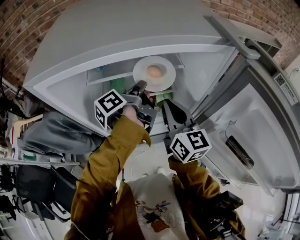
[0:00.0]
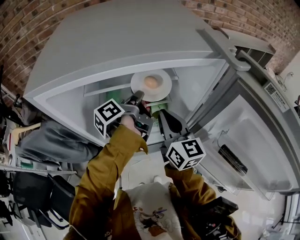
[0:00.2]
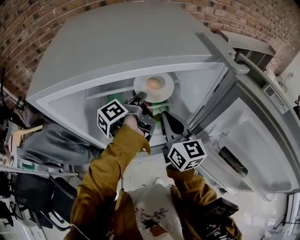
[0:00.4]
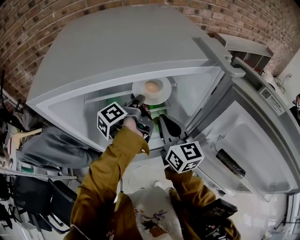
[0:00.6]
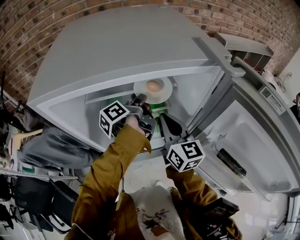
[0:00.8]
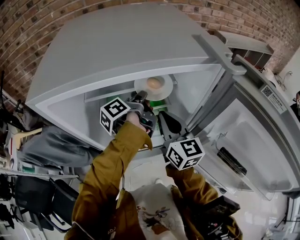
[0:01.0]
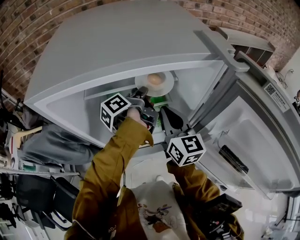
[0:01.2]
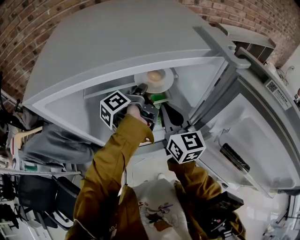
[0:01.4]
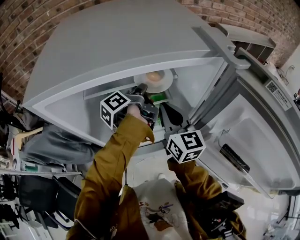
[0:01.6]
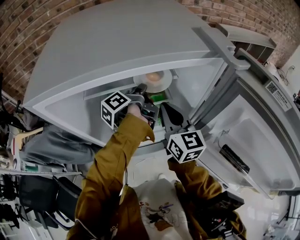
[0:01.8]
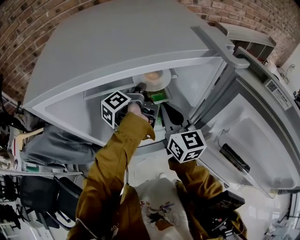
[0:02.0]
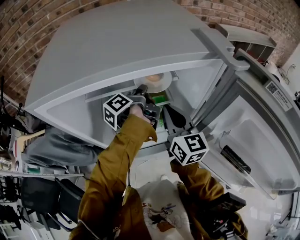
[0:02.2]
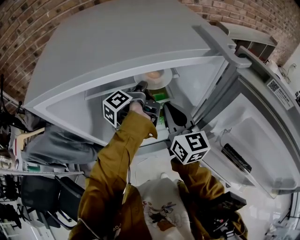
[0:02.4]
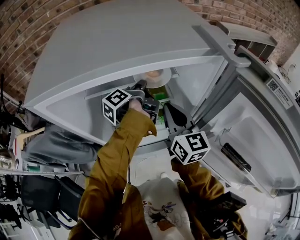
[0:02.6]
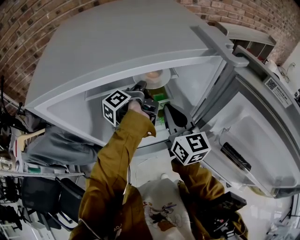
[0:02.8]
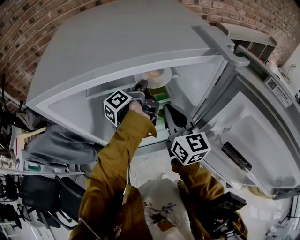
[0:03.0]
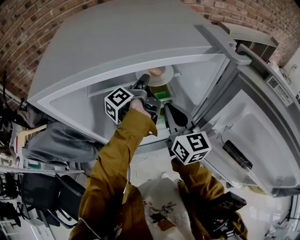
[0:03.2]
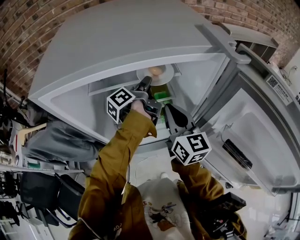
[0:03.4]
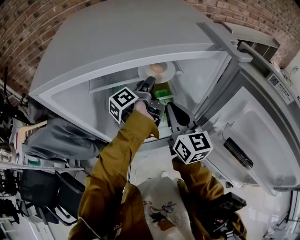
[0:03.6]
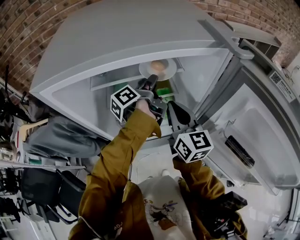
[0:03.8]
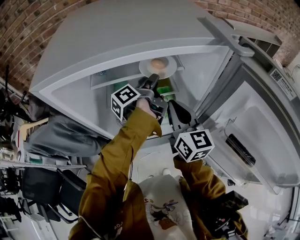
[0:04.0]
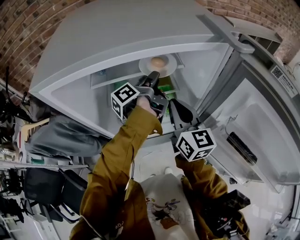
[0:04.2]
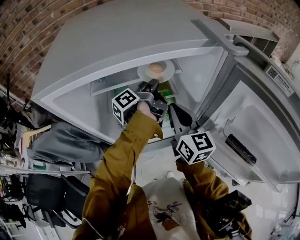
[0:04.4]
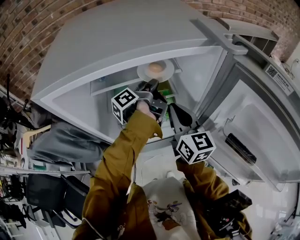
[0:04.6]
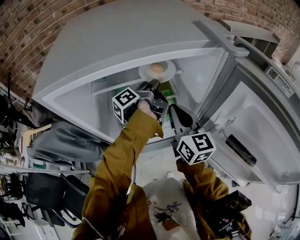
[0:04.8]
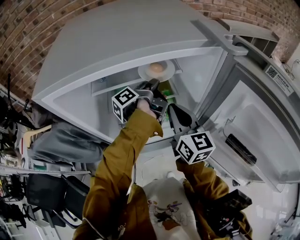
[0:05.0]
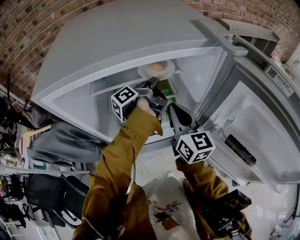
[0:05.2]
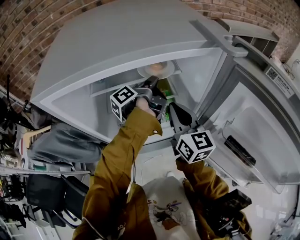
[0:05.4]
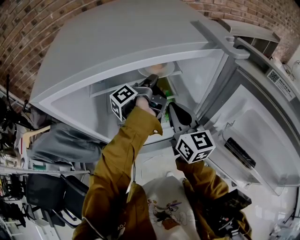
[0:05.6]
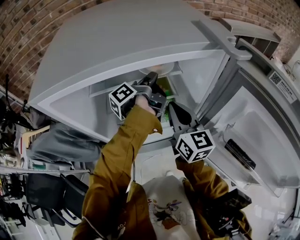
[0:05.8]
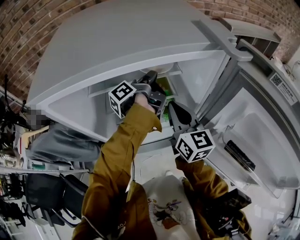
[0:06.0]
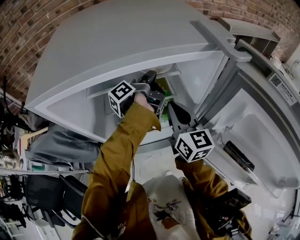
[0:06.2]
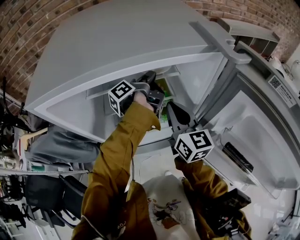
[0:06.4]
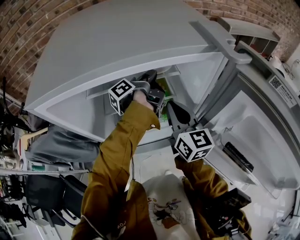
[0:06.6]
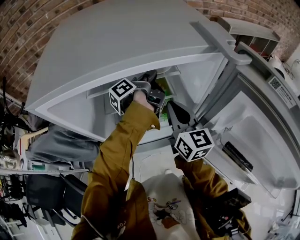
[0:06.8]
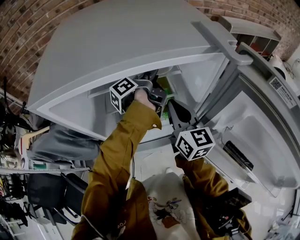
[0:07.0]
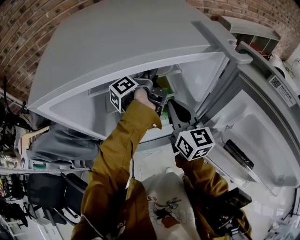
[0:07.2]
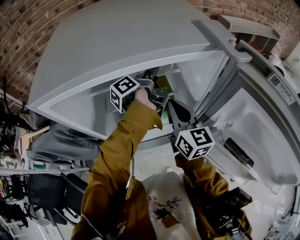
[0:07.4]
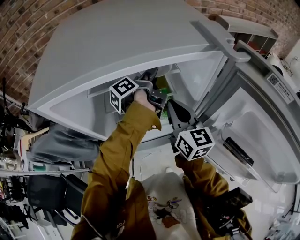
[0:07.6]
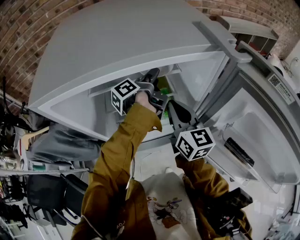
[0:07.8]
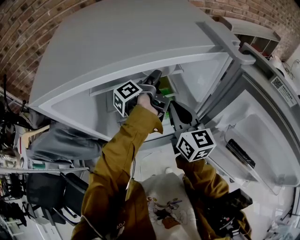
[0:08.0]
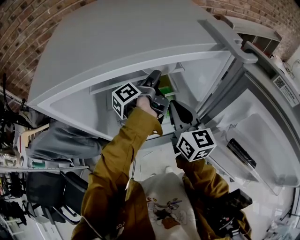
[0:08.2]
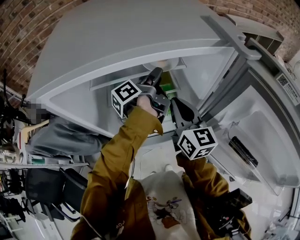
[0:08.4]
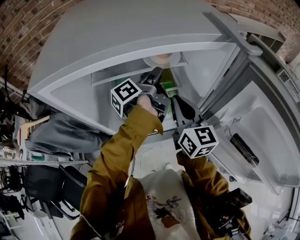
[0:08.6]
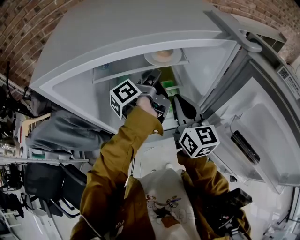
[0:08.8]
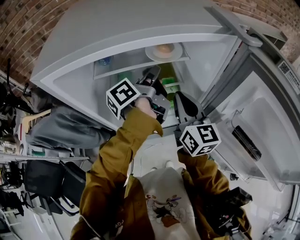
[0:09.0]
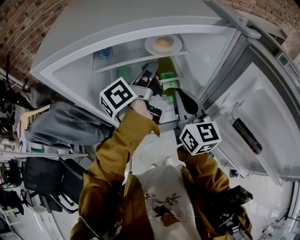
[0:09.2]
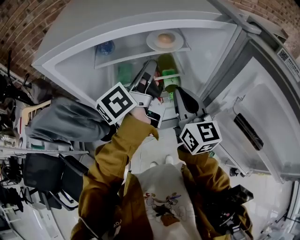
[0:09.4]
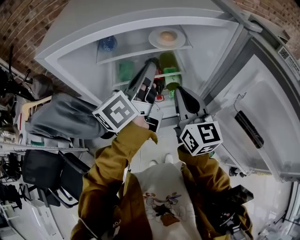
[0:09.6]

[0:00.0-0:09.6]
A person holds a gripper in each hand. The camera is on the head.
0:08.0 to 0:09.6: The right gripper shifts by some 5 cm.

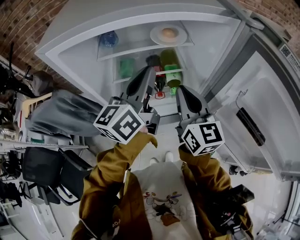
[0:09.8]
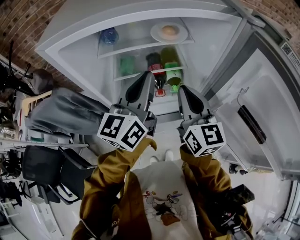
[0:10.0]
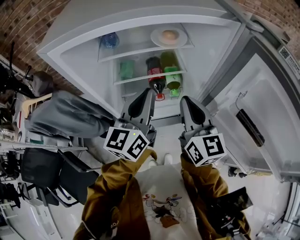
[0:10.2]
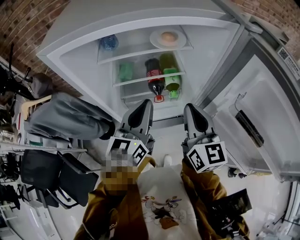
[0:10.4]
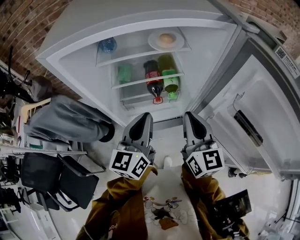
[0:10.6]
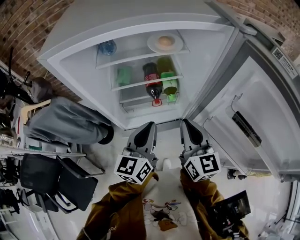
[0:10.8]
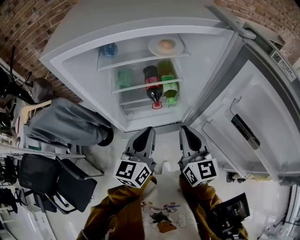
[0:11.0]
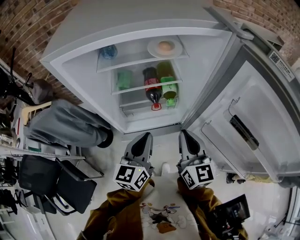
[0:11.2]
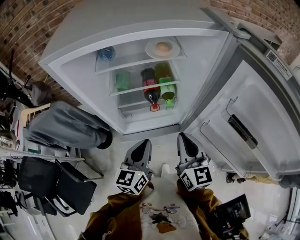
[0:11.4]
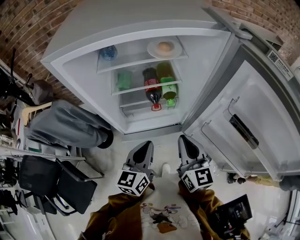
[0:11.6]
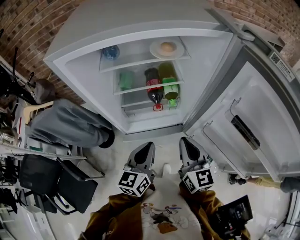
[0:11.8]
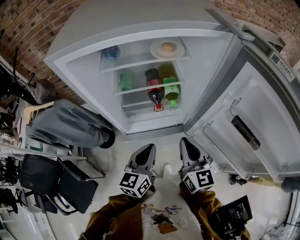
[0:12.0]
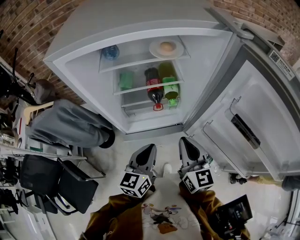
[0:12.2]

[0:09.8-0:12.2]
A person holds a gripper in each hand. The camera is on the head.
0:09.8 to 0:11.0: The right gripper moves about 10 cm.

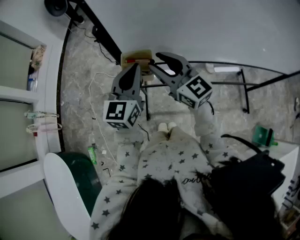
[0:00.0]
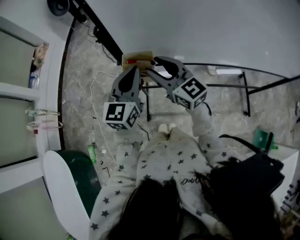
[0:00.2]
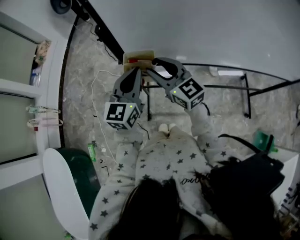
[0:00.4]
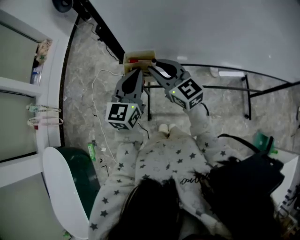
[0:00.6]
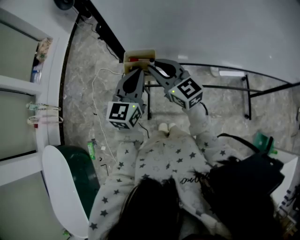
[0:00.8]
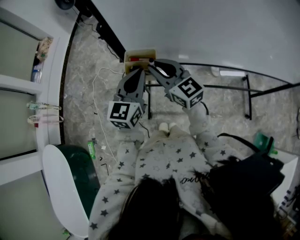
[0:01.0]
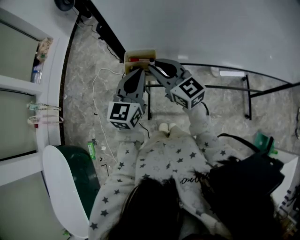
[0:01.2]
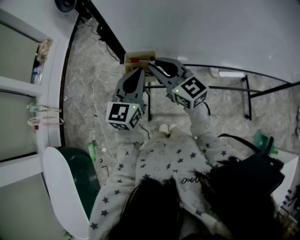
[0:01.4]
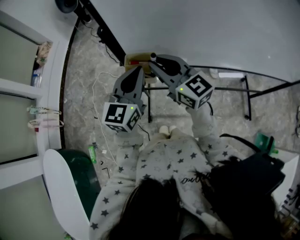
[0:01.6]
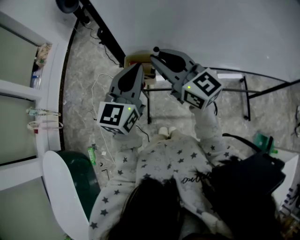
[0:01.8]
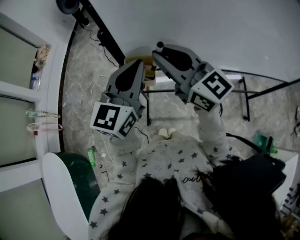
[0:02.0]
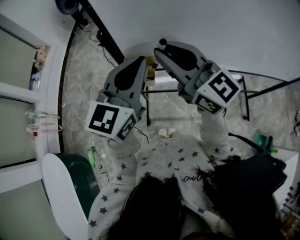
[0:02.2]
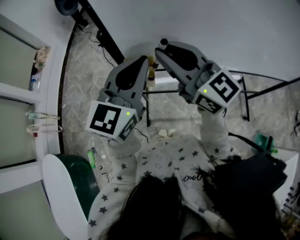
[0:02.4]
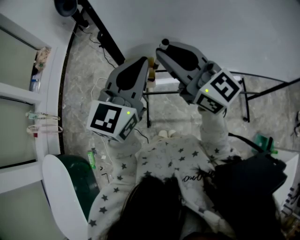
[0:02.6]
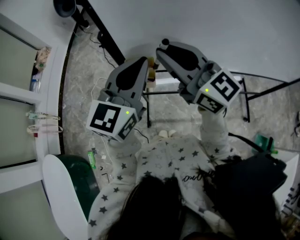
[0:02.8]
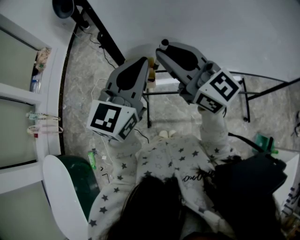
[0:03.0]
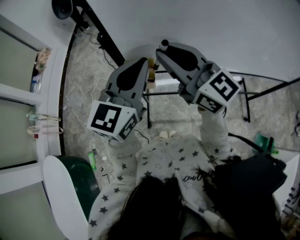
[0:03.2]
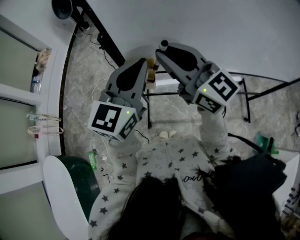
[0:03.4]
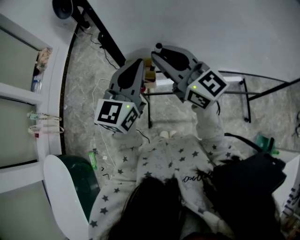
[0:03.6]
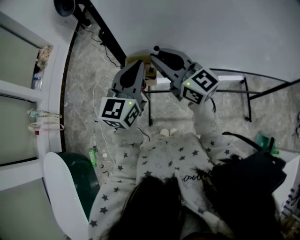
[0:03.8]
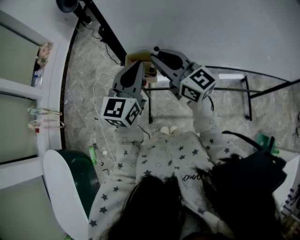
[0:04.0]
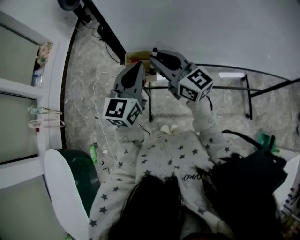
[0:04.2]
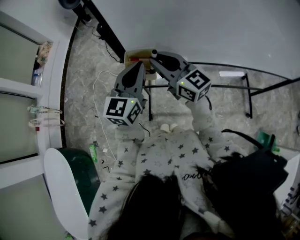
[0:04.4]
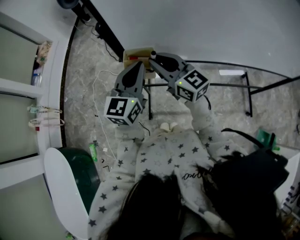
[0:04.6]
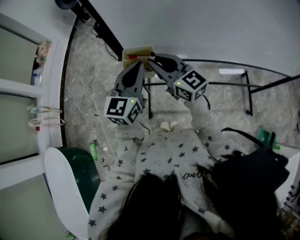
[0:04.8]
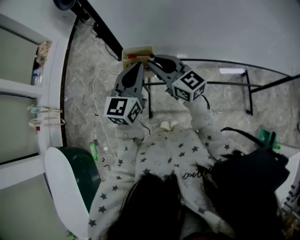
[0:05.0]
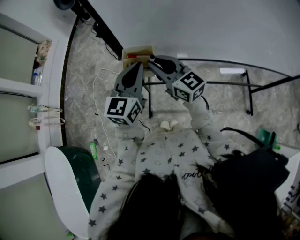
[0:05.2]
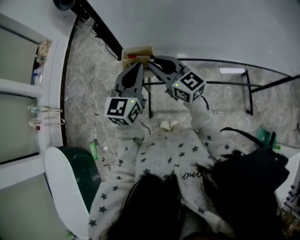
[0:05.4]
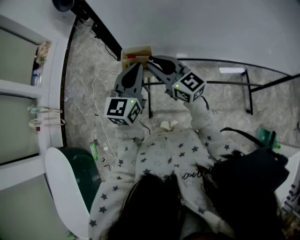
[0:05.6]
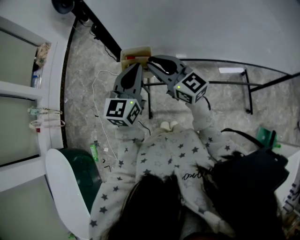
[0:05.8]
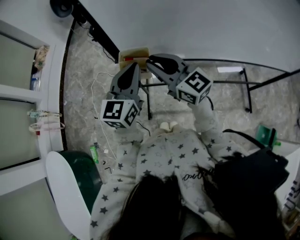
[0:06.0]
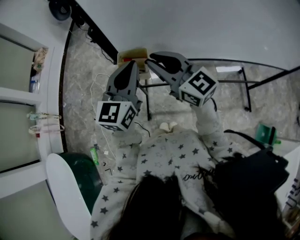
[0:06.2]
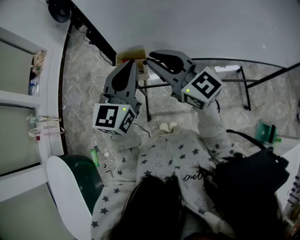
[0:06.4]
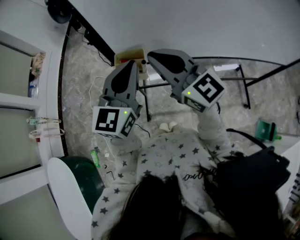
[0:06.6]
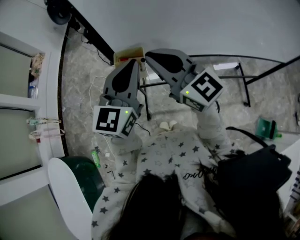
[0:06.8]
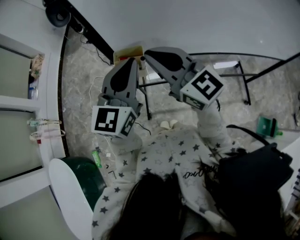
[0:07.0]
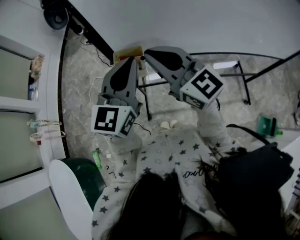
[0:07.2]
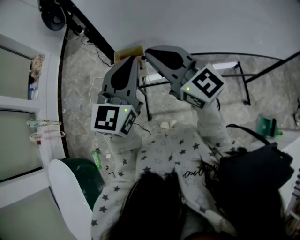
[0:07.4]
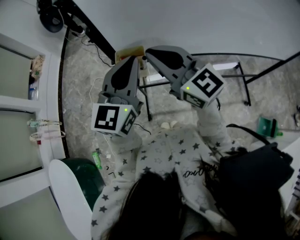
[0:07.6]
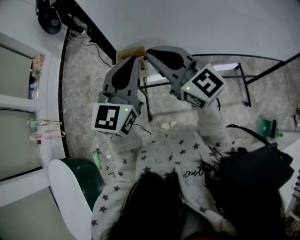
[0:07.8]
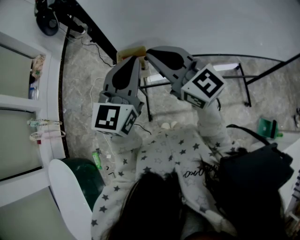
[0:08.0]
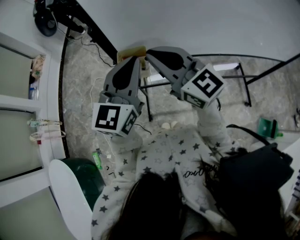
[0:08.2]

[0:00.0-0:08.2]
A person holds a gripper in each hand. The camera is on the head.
0:00.0 to 0:01.6: The grippers stay close to where they were, moving slightly.
0:01.6 to 0:03.2: The two grippers go about 10 cm upward.
0:03.2 to 0:05.0: The grippers both shift downward by some 15 cm.
0:05.0 to 0:06.6: The grippers both shift upward by about 10 cm.
0:06.6 to 0:08.2: The grippers stay close to where they were, moving slightly.

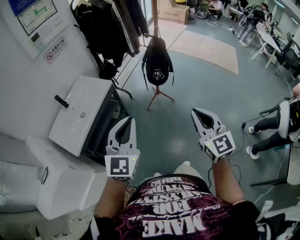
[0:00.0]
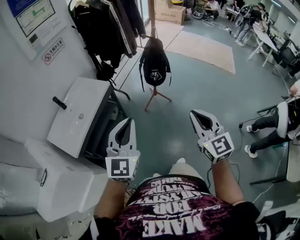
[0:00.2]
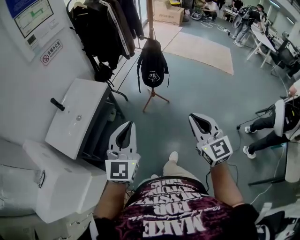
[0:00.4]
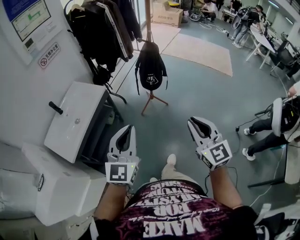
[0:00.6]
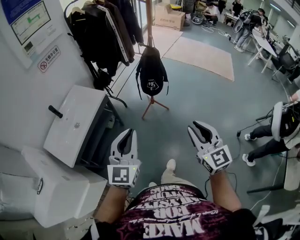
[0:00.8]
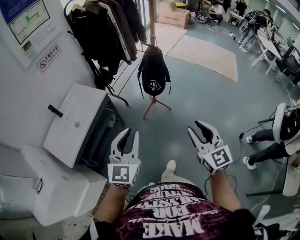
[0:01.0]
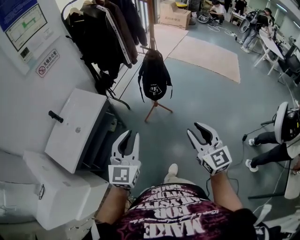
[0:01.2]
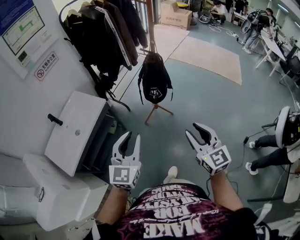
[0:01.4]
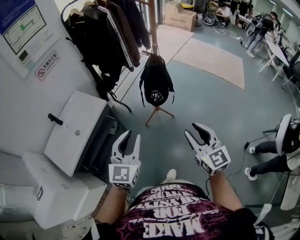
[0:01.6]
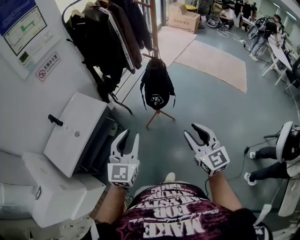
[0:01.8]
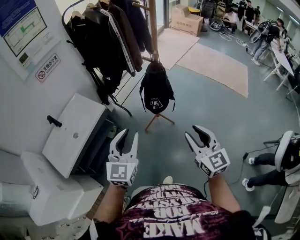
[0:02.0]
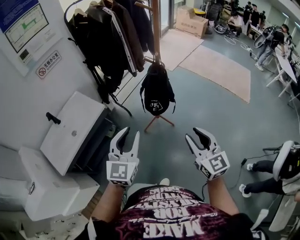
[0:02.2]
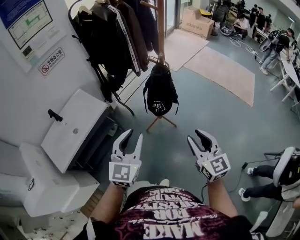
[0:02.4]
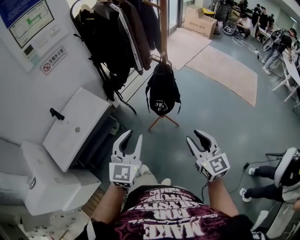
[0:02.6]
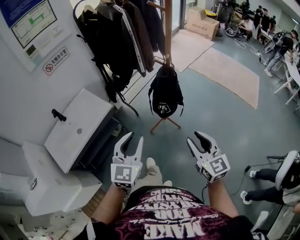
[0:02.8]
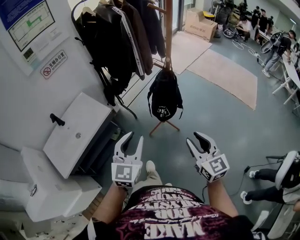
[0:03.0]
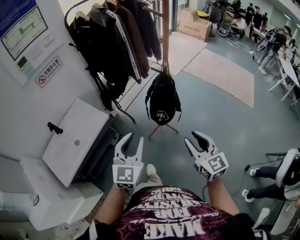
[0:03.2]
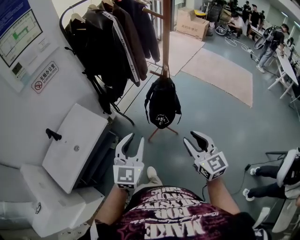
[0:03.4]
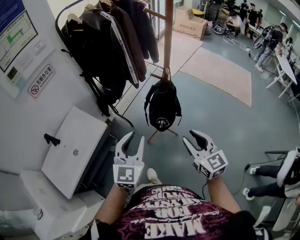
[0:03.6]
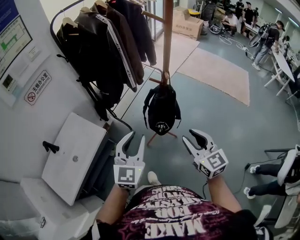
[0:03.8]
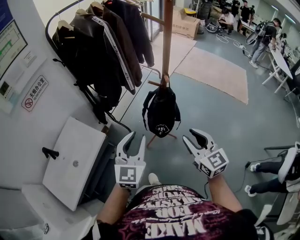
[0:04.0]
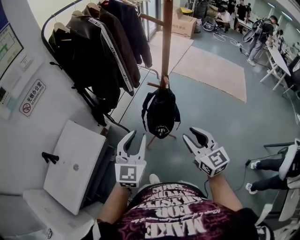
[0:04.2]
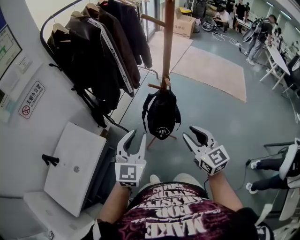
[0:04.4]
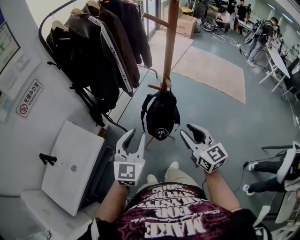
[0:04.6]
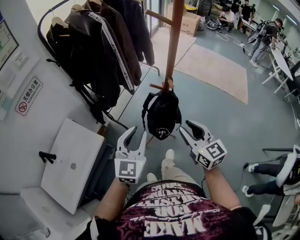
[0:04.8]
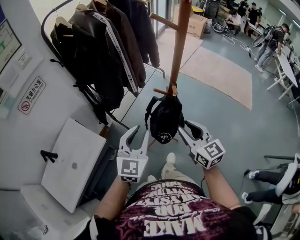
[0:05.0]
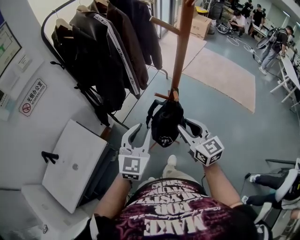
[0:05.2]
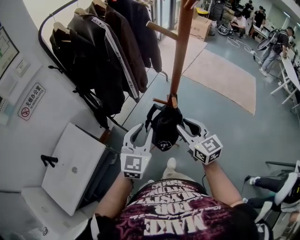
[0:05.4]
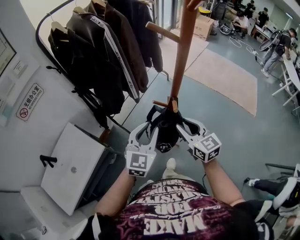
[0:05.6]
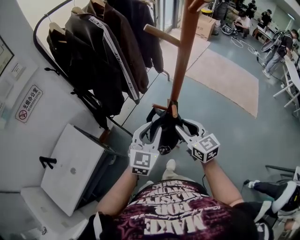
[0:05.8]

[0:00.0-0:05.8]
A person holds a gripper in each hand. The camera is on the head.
0:00.0 to 0:01.4: The grippers both shift forward, to the right and downward by roughly 15 cm. The right gripper opens its fingers.
0:01.4 to 0:02.8: The grippers both shift forward and to the right by approximately 15 cm.
0:02.8 to 0:04.4: Both grippers travel together forward, approximately 20 cm.
0:04.4 to 0:05.8: The right gripper is displaced forward by about 20 cm; the left gripper moves forward and to the right, some 20 cm.
